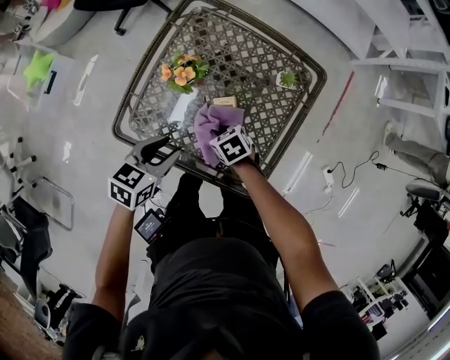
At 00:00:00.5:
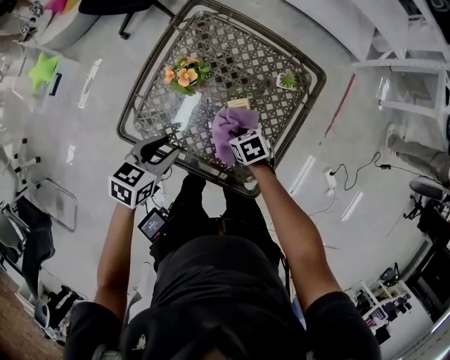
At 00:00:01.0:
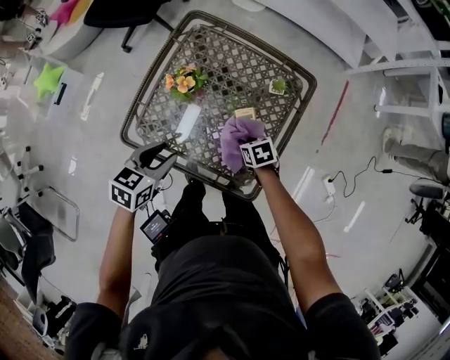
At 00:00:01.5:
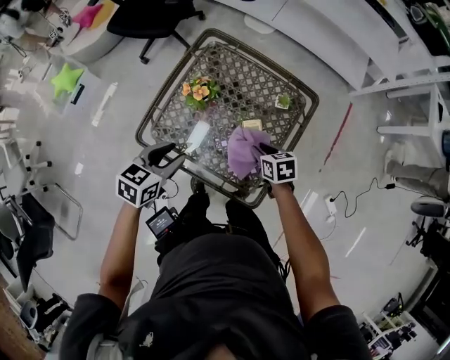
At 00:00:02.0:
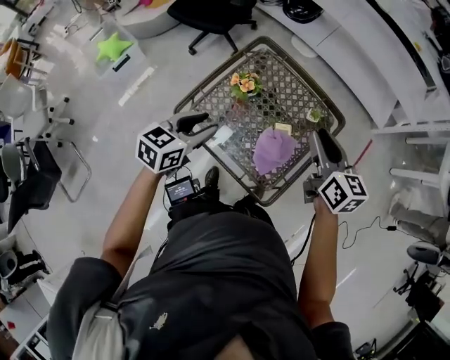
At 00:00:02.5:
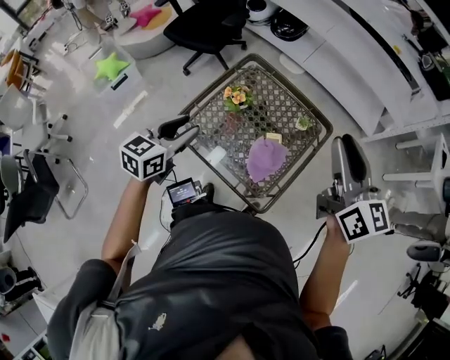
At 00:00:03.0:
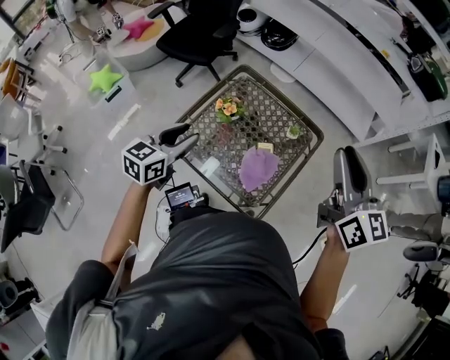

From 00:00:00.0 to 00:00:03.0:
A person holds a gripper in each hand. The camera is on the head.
From 00:00:00.0 to 00:00:01.5: The left gripper heads upward, covering about 10 cm. Meanwhile the right gripper travels to the right and upward by about 15 cm, and turns by roughly 20 degrees.
From 00:00:01.5 to 00:00:03.0: The left gripper goes about 15 cm upward and to the left, and swivels about 20 degrees, while the right gripper shifts about 50 cm upward, and tilts its fingers some 50 degrees upward.

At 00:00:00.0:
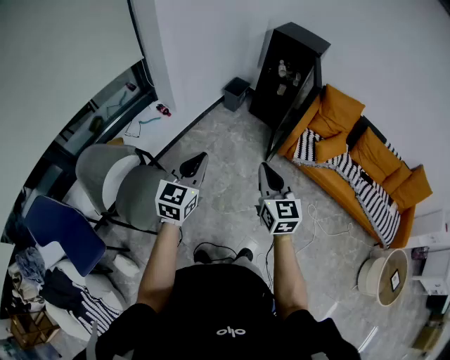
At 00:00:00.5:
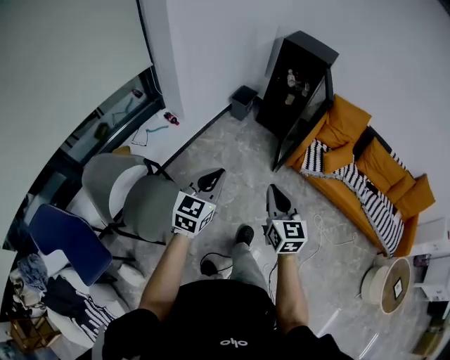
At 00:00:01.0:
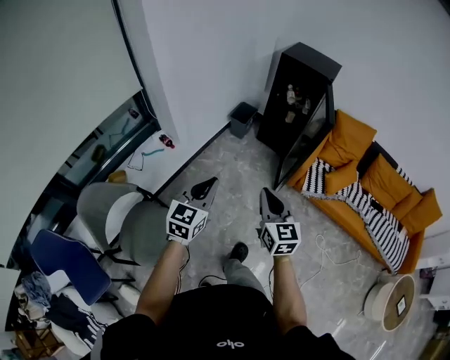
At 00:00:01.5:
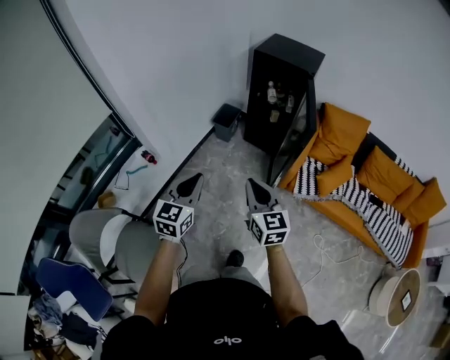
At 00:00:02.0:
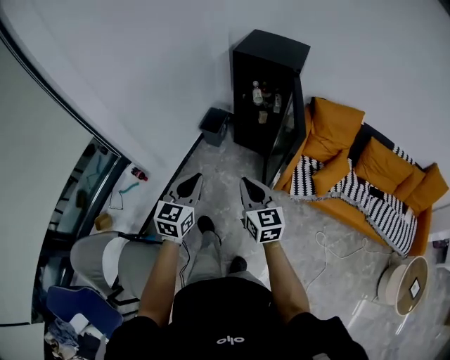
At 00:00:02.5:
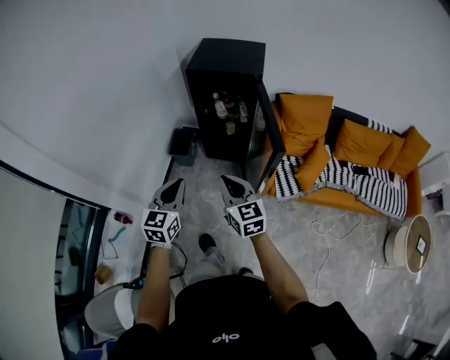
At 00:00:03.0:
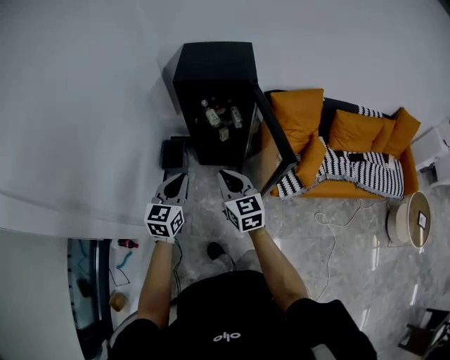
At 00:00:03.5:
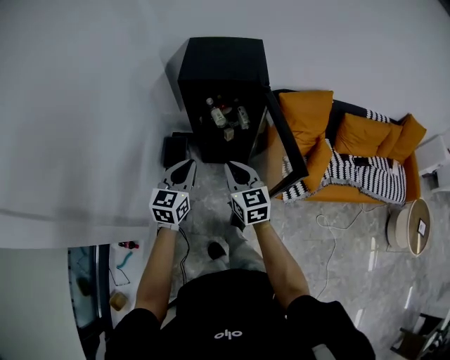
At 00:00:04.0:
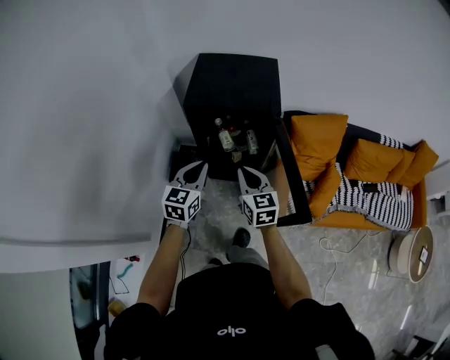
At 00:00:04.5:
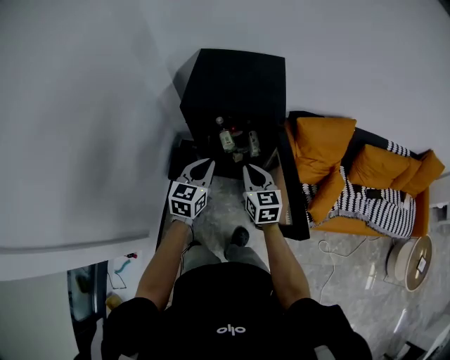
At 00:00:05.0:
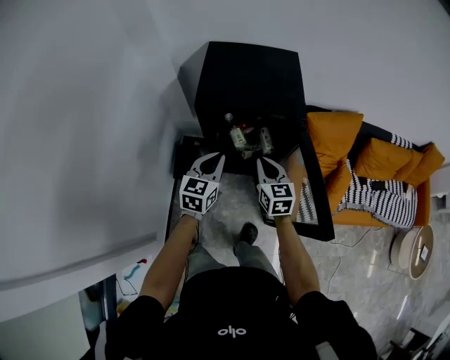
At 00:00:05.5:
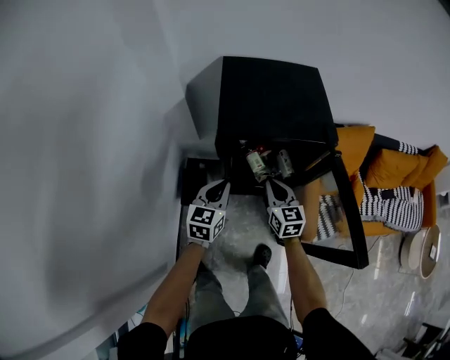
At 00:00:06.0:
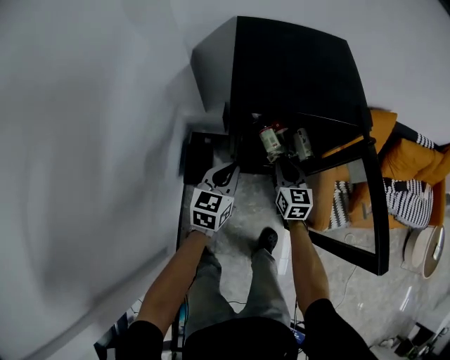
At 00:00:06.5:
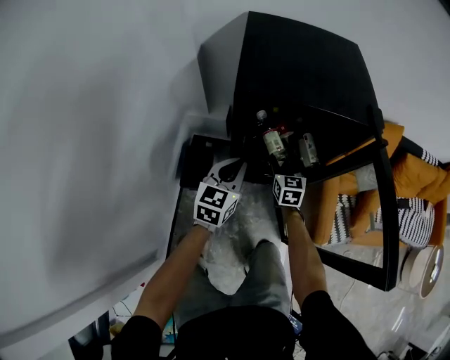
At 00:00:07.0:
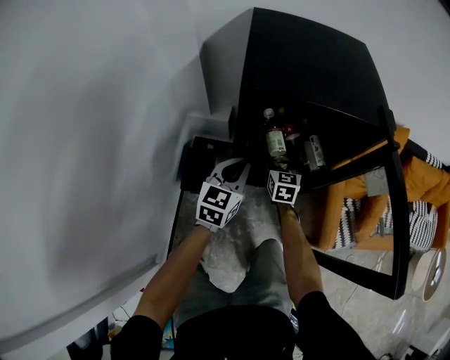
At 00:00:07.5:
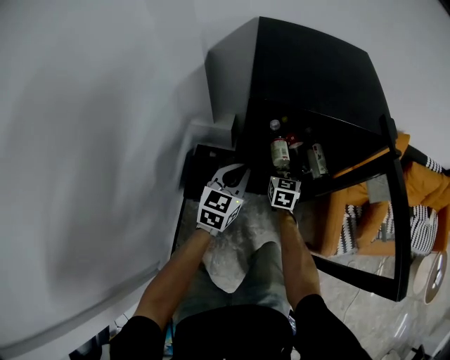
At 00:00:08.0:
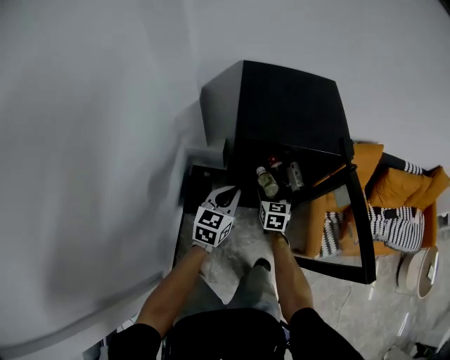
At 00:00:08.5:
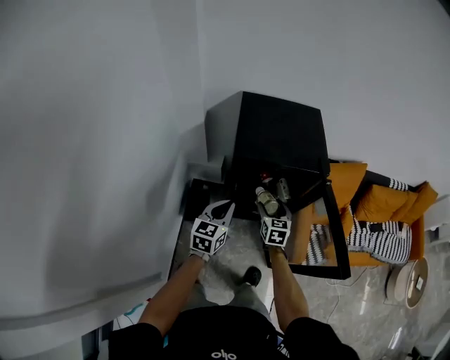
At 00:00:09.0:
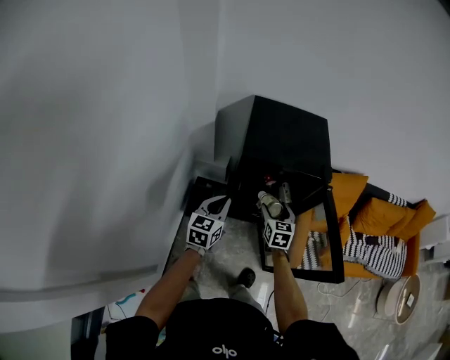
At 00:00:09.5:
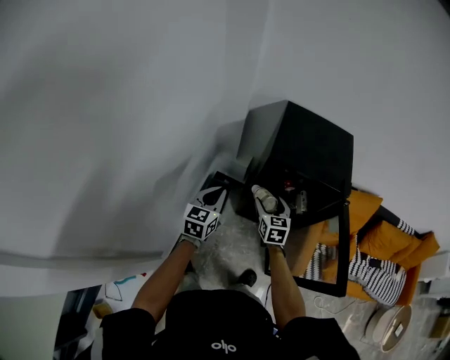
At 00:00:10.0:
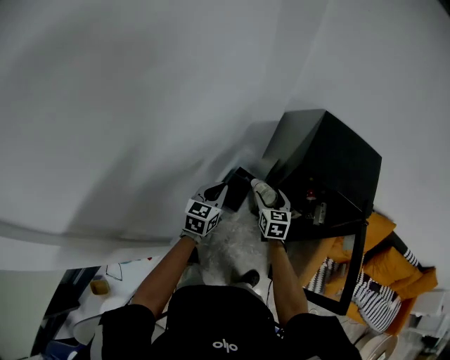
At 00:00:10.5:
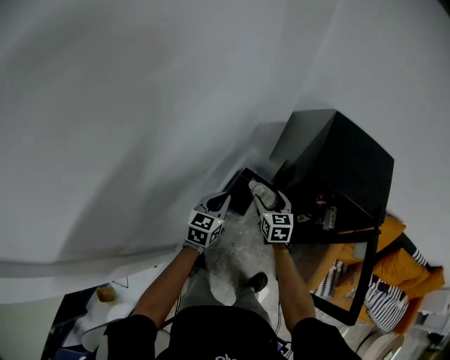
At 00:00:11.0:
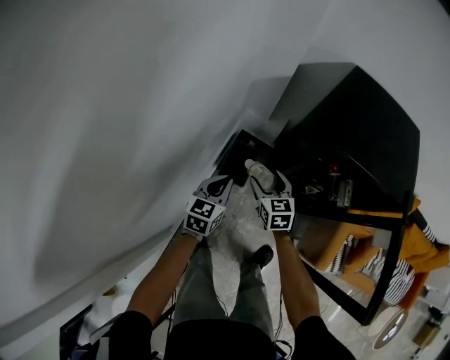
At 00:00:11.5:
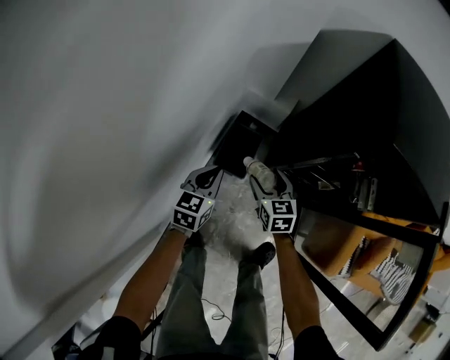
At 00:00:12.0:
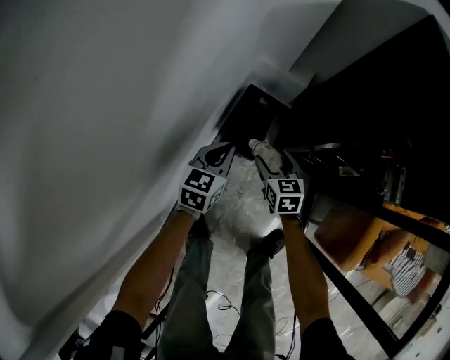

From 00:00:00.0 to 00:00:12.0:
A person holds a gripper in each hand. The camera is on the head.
From 00:00:00.0 to 00:00:02.0: Both grippers move forward, about 40 cm.
From 00:00:02.0 to 00:00:04.0: The two grippers travel together, forward, roughly 50 cm. The right gripper swivels approximately 20 degrees. Meanwhile the left gripper swivels approximately 20 degrees.
From 00:00:04.0 to 00:00:06.0: The left gripper goes about 25 cm downward, forward and to the left. Meanwhile the right gripper is displaced downward and forward by some 30 cm.
From 00:00:06.0 to 00:00:08.0: The right gripper travels downward and back again, roughly 15 cm each way, and opens up; the left gripper moves approximately 5 cm downward and comes back.
From 00:00:08.0 to 00:00:10.0: The right gripper moves approximately 25 cm, and turns by roughly 30 degrees. Meanwhile the left gripper shifts by roughly 25 cm, and changes its angle by about 30 degrees.
From 00:00:10.0 to 00:00:12.0: The grippers both shift downward by some 40 cm.

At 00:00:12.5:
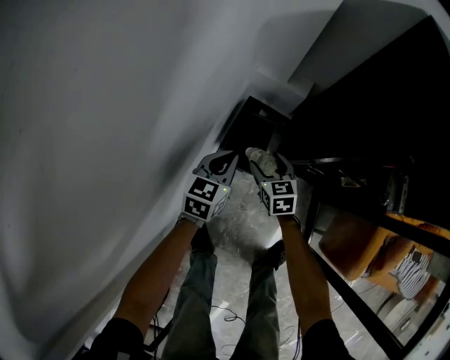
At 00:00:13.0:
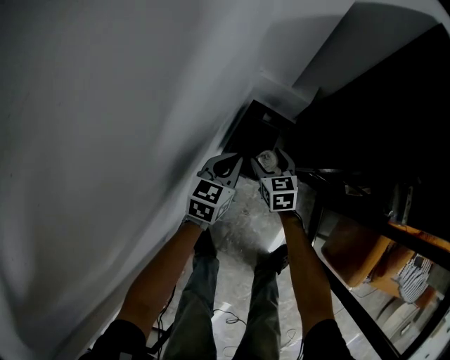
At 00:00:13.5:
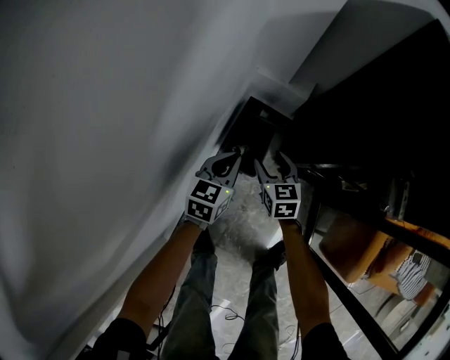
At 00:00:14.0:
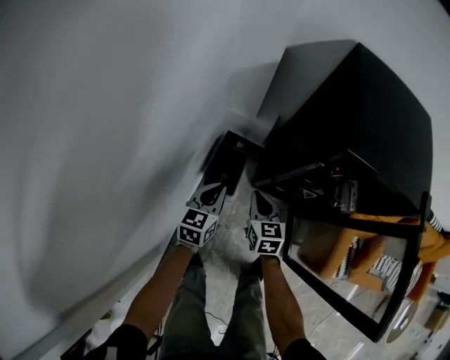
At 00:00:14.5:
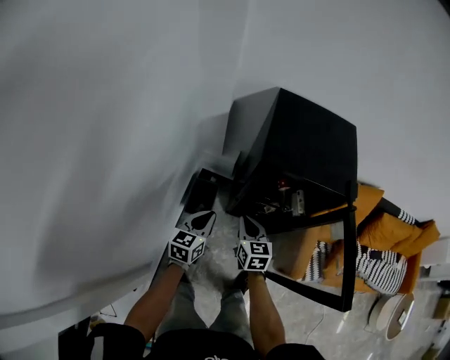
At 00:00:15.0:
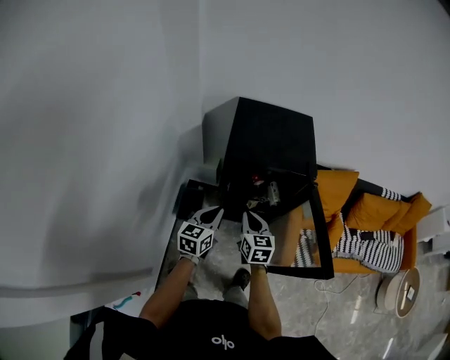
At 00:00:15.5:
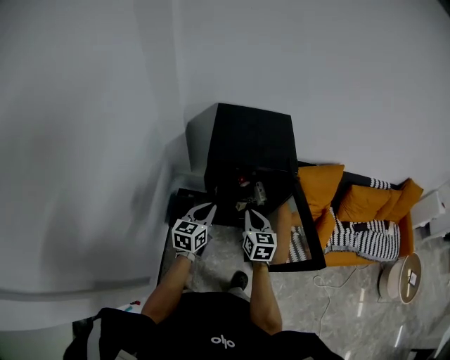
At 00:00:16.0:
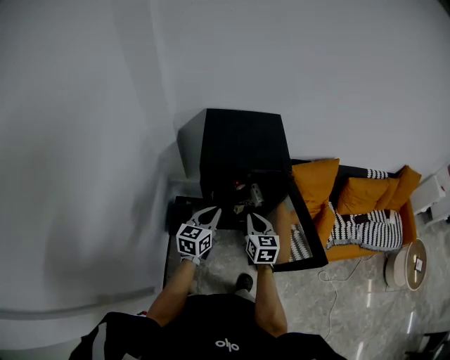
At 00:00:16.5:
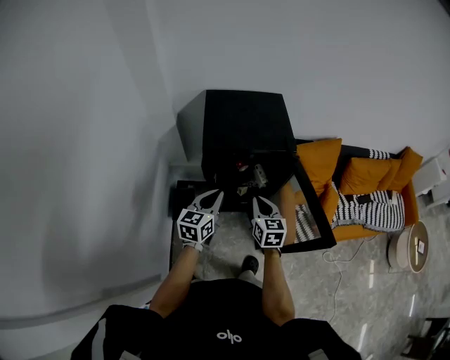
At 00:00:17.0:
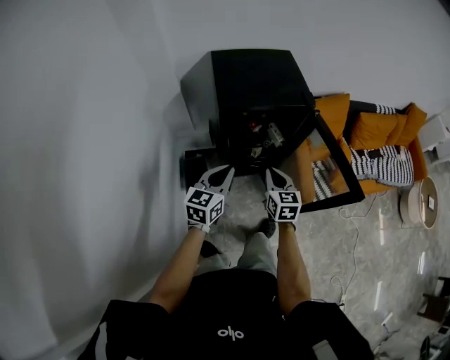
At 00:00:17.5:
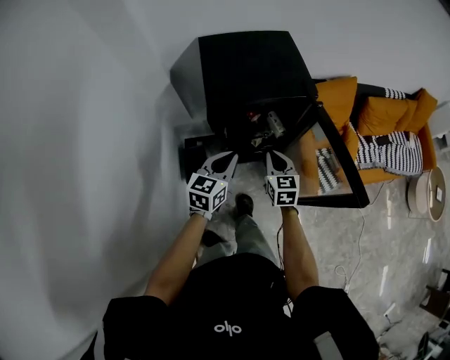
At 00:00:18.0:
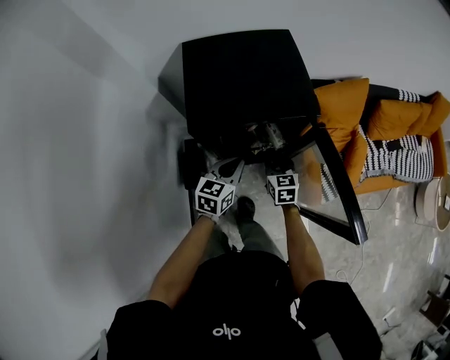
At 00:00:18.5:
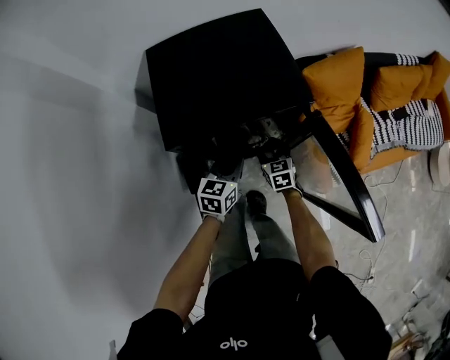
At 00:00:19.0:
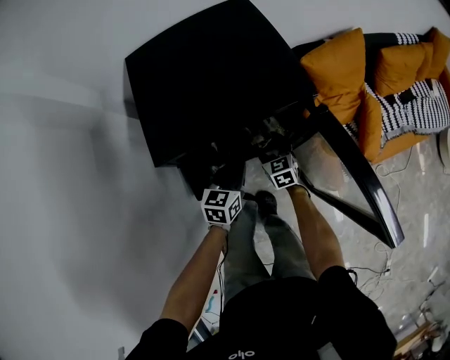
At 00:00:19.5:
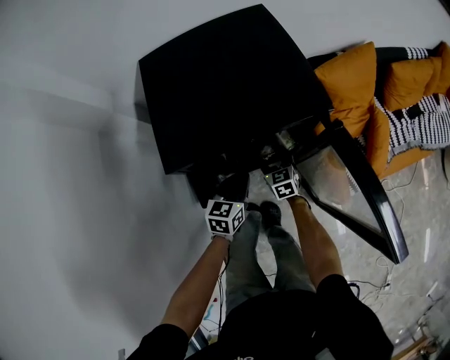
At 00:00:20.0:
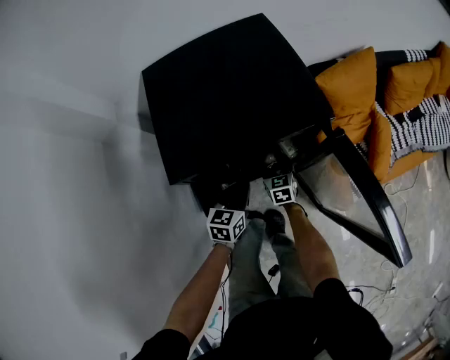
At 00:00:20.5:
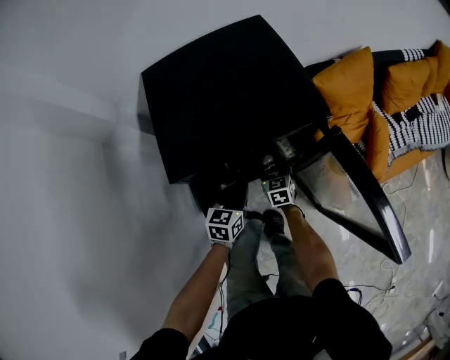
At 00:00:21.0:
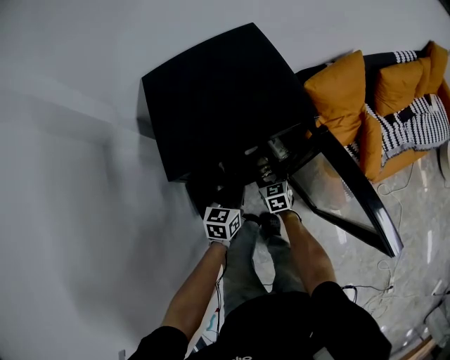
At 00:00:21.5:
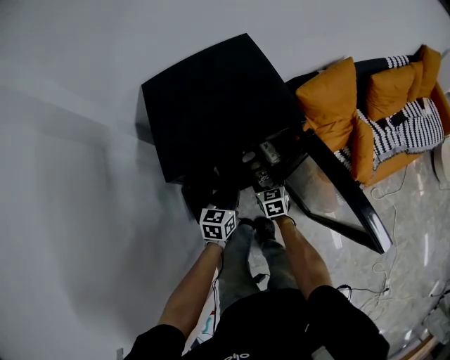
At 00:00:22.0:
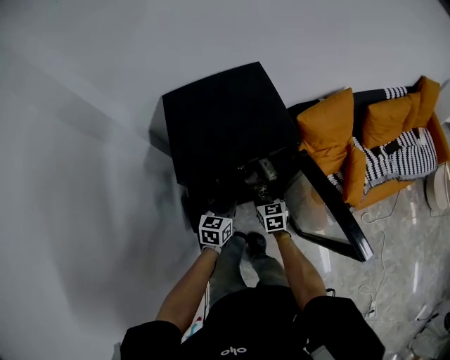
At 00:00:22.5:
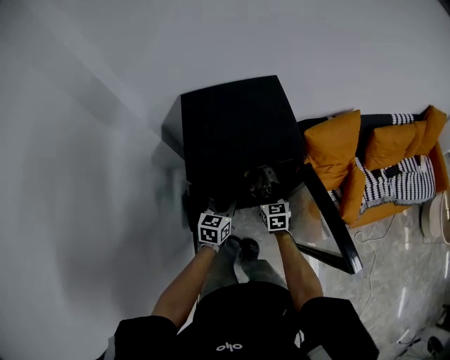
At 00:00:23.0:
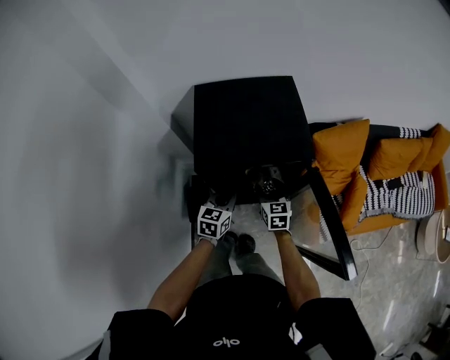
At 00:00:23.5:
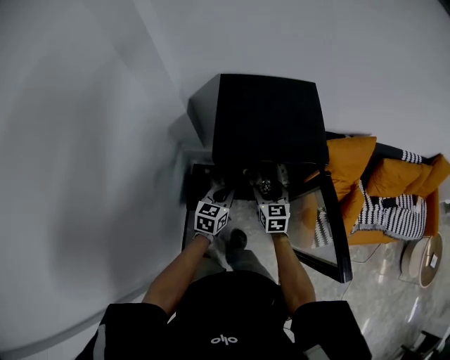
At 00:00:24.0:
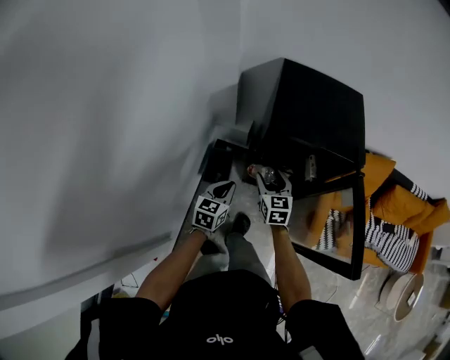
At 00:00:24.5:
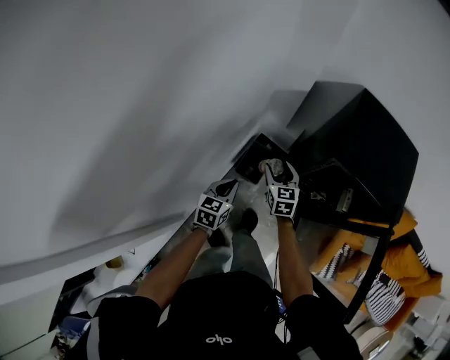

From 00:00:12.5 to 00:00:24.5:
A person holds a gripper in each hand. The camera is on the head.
From 00:00:12.5 to 00:00:14.5: The right gripper heads upward, covering roughly 40 cm, changes its angle by some 20 degrees, and closes; the left gripper heads upward and to the right, covering about 35 cm.
From 00:00:14.5 to 00:00:16.5: The grippers both shift to the right and upward by about 20 cm.
From 00:00:16.5 to 00:00:18.5: The two grippers go some 25 cm downward and forward. The right gripper opens up, while the left gripper rotates roughly 20 degrees.
From 00:00:18.5 to 00:00:20.5: The two grippers go approximately 5 cm downward.
From 00:00:20.5 to 00:00:22.5: The left gripper travels upward by about 10 cm. The right gripper shifts about 15 cm upward.
From 00:00:22.5 to 00:00:24.5: The left gripper changes place by some 35 cm, and changes its angle by about 40 degrees. The right gripper shifts by about 35 cm, and rotates roughly 40 degrees.
